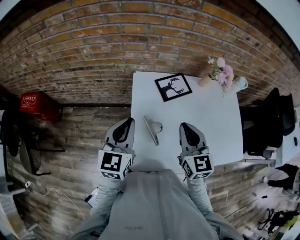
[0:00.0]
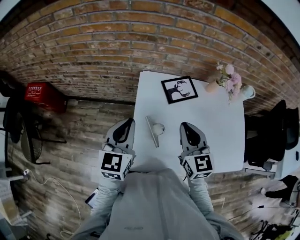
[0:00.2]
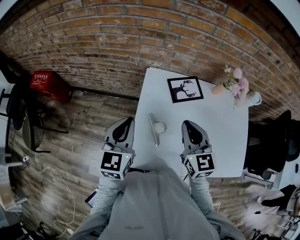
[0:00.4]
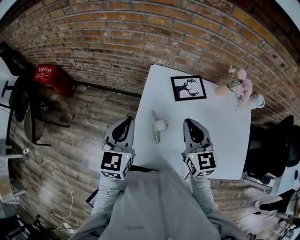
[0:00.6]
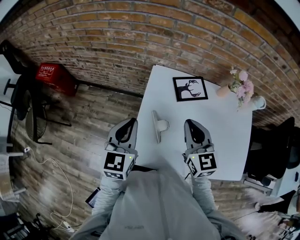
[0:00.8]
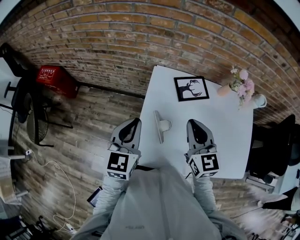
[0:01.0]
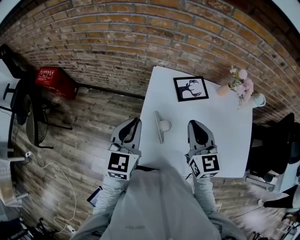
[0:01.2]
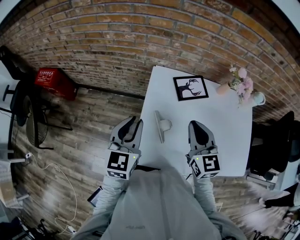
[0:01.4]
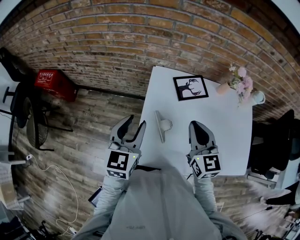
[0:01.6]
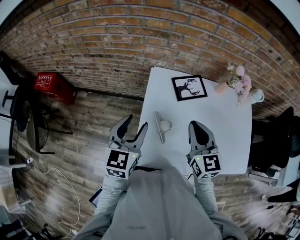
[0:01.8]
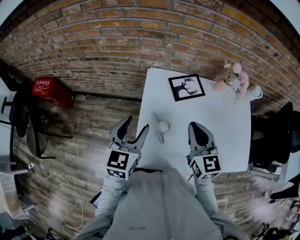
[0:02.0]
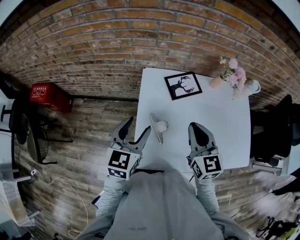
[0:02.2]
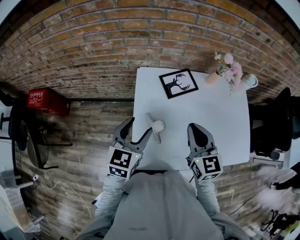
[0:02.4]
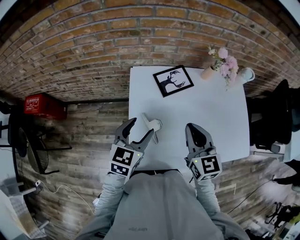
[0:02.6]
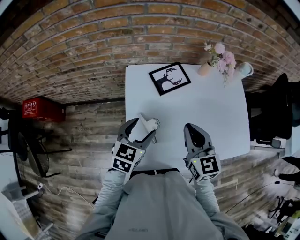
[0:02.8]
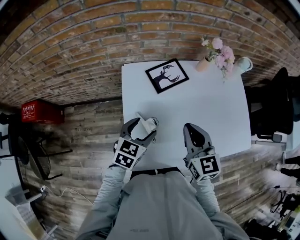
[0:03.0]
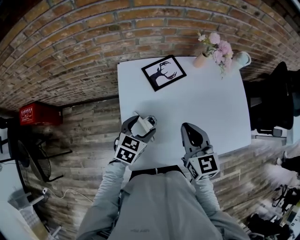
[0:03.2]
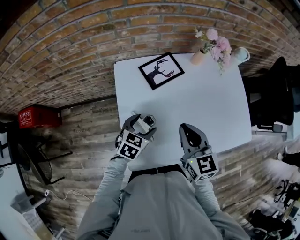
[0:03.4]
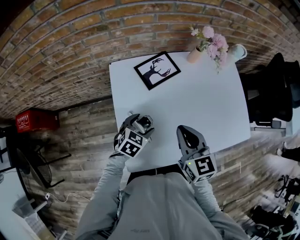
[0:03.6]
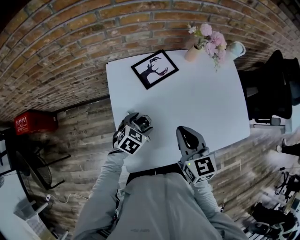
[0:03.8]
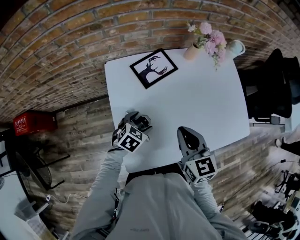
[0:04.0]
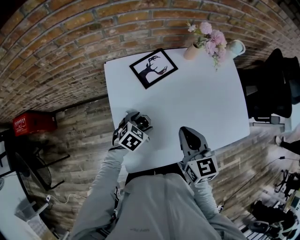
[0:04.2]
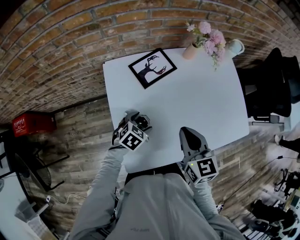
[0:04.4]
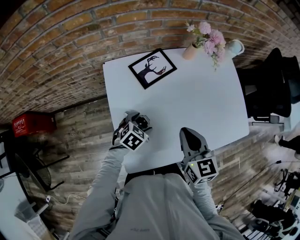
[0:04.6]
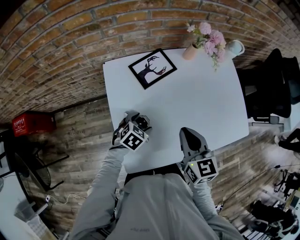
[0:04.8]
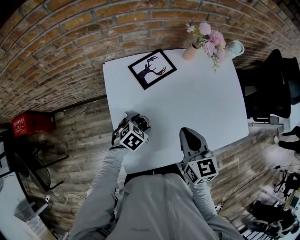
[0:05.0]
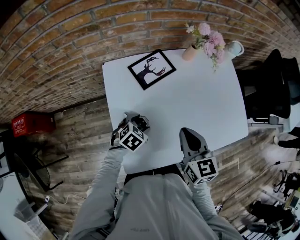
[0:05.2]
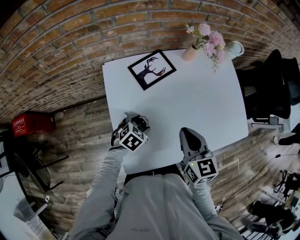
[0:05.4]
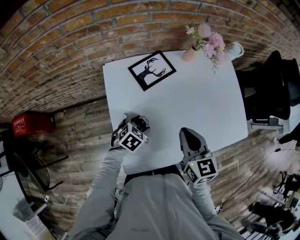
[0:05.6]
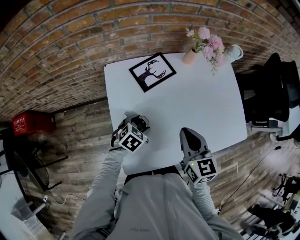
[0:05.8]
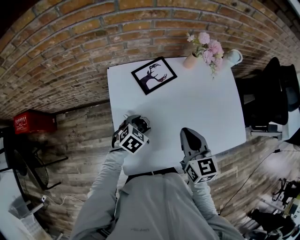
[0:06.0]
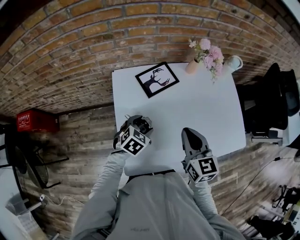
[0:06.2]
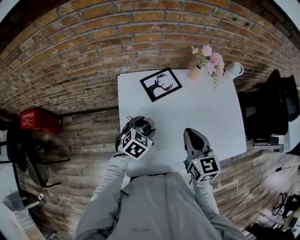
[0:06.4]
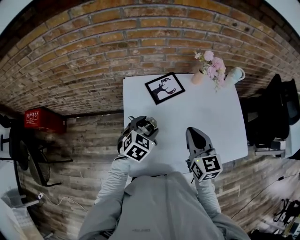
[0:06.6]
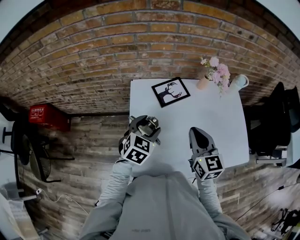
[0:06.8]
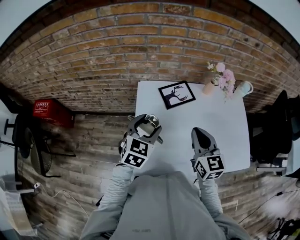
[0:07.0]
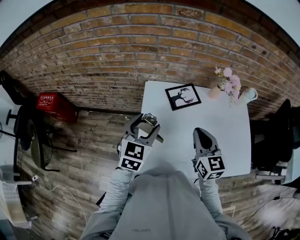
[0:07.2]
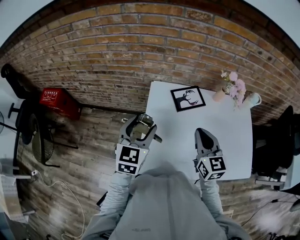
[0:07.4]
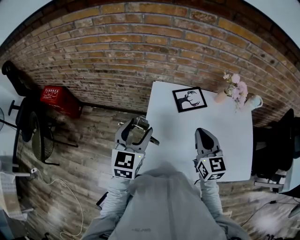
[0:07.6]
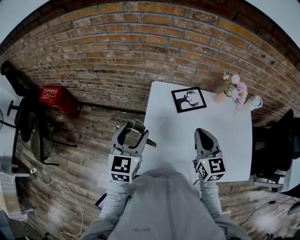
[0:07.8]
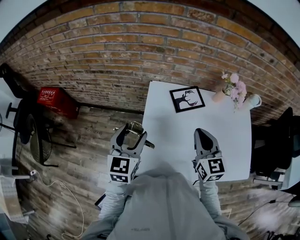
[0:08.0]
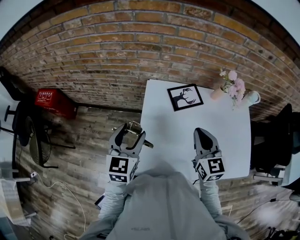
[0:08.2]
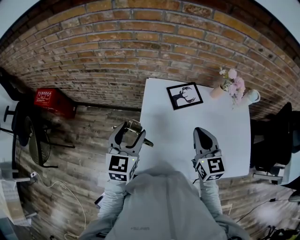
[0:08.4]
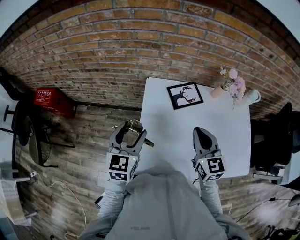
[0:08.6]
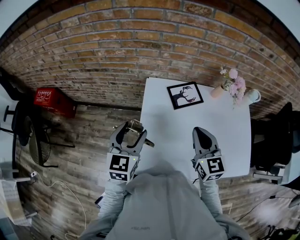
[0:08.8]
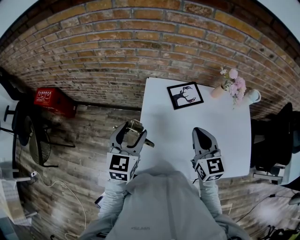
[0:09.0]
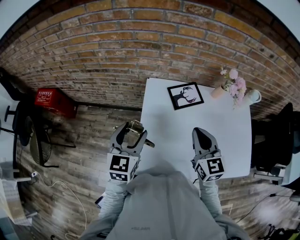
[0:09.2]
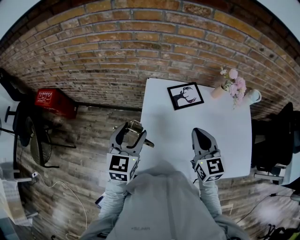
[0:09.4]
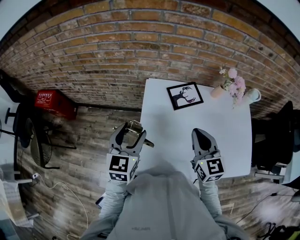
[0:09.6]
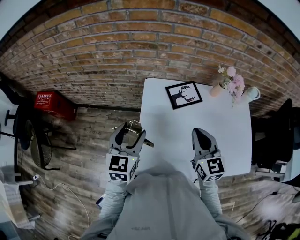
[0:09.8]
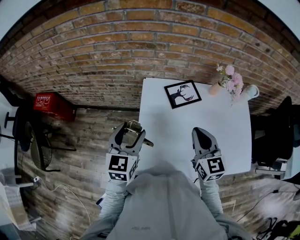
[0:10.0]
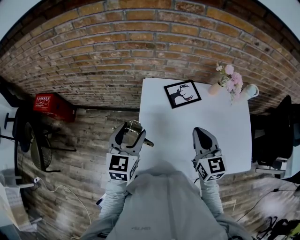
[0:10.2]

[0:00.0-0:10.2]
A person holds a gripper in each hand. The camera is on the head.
0:00.0 to 0:01.4: The grippers make only small movements.
0:01.4 to 0:03.0: The right gripper shifts roughly 5 cm to the right, while the left gripper moves downward and to the right, roughly 15 cm, changes its angle by some 40 degrees, and opens.
0:03.0 to 0:04.4: The left gripper heads downward, covering about 15 cm, and swivels some 30 degrees. The right gripper changes place by about 5 cm.
0:04.4 to 0:05.8: Neither gripper changes place.
0:05.8 to 0:07.2: The right gripper travels upward by approximately 5 cm. Meanwhile the left gripper heads upward, covering roughly 25 cm, and angles its fingers upward, by approximately 30 degrees.
0:07.2 to 0:08.8: The left gripper is displaced to the left by approximately 5 cm.
0:08.8 to 0:10.2: Both grippers stay put.

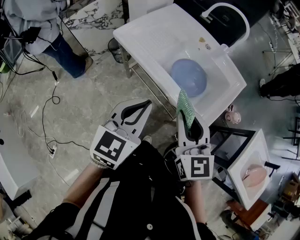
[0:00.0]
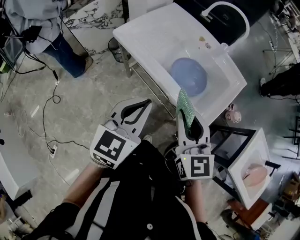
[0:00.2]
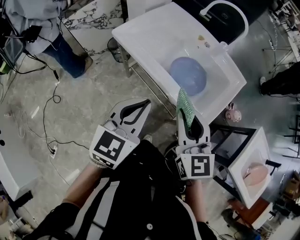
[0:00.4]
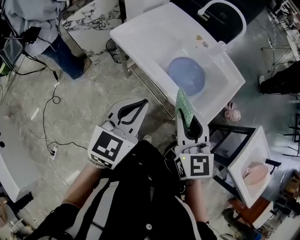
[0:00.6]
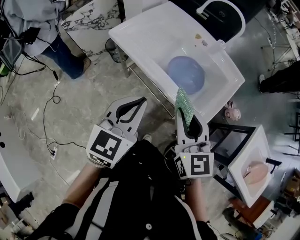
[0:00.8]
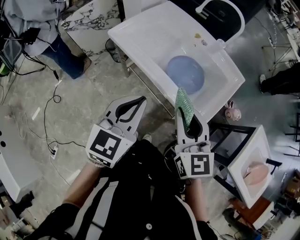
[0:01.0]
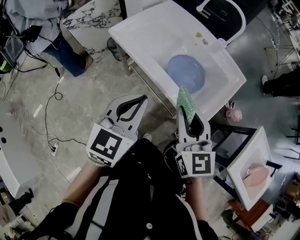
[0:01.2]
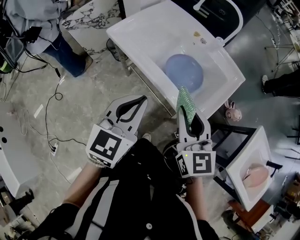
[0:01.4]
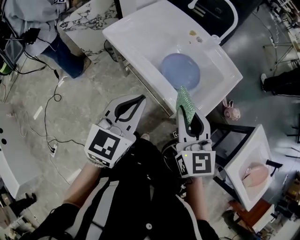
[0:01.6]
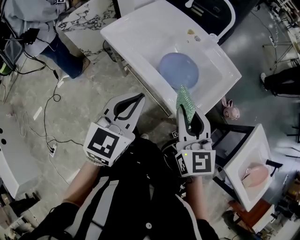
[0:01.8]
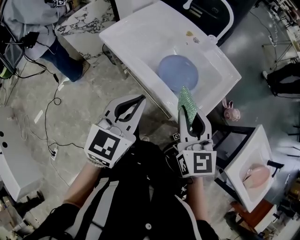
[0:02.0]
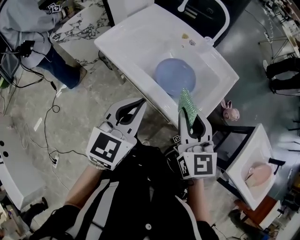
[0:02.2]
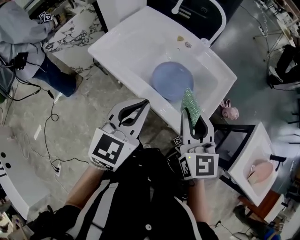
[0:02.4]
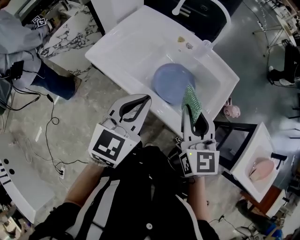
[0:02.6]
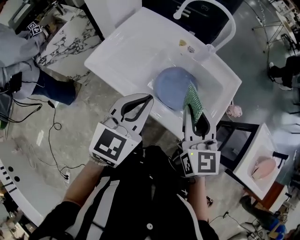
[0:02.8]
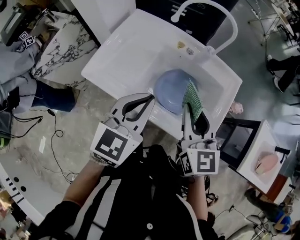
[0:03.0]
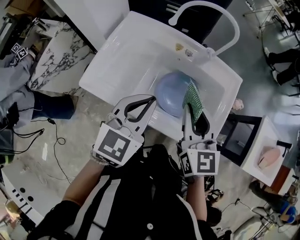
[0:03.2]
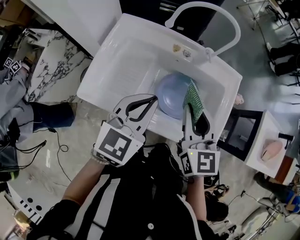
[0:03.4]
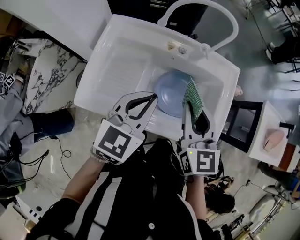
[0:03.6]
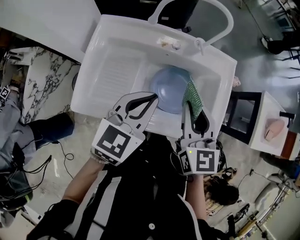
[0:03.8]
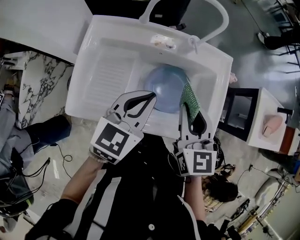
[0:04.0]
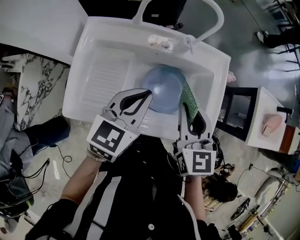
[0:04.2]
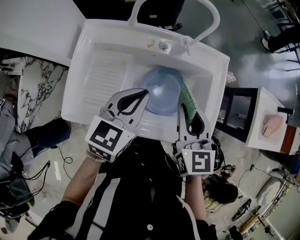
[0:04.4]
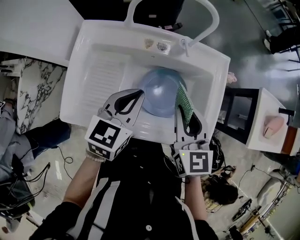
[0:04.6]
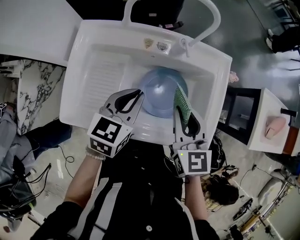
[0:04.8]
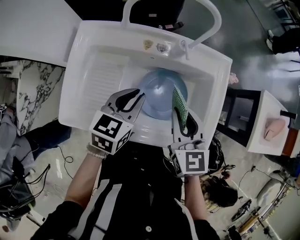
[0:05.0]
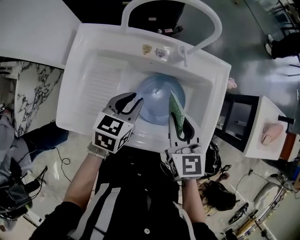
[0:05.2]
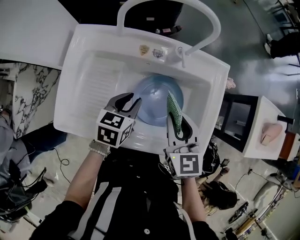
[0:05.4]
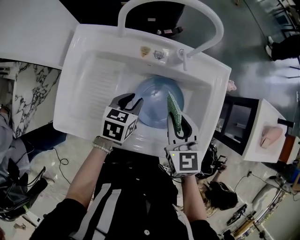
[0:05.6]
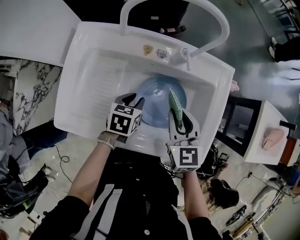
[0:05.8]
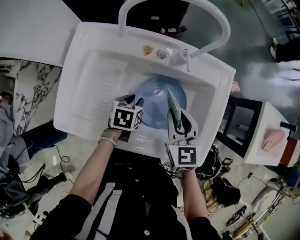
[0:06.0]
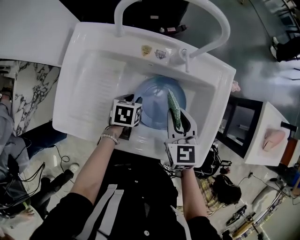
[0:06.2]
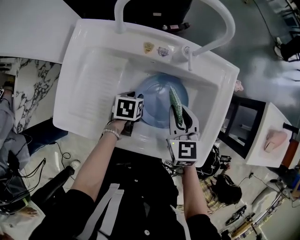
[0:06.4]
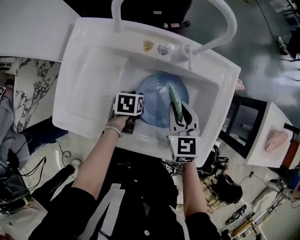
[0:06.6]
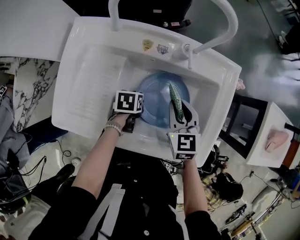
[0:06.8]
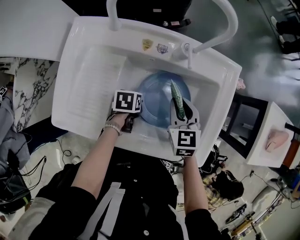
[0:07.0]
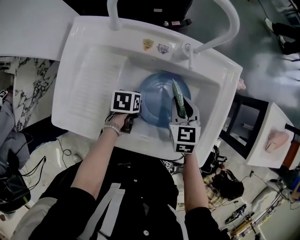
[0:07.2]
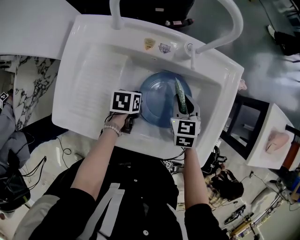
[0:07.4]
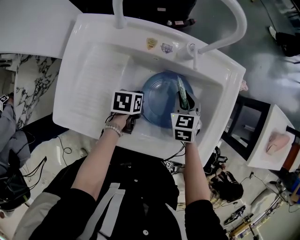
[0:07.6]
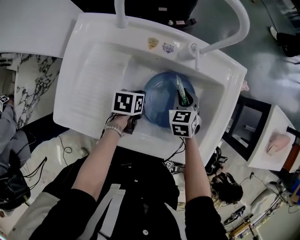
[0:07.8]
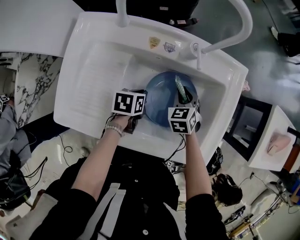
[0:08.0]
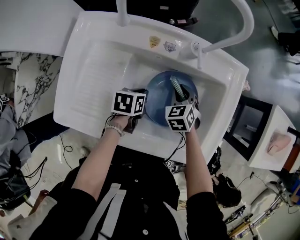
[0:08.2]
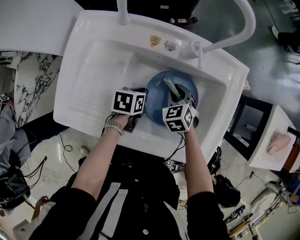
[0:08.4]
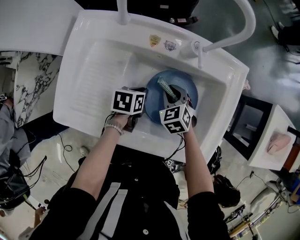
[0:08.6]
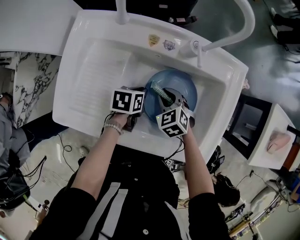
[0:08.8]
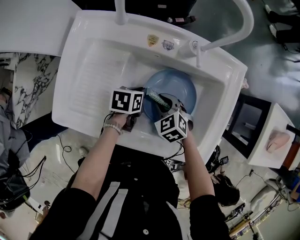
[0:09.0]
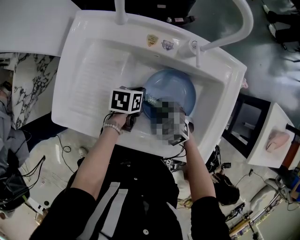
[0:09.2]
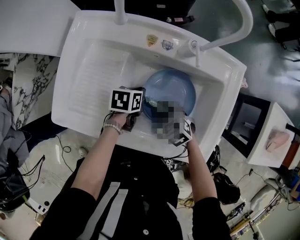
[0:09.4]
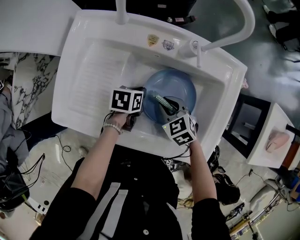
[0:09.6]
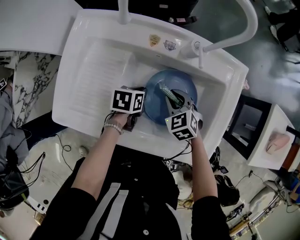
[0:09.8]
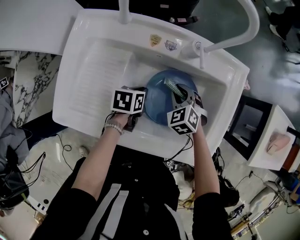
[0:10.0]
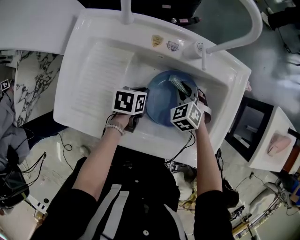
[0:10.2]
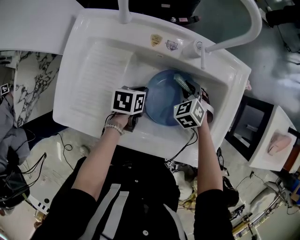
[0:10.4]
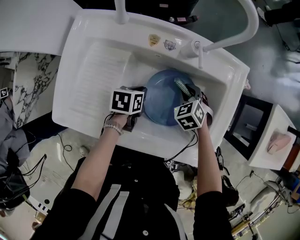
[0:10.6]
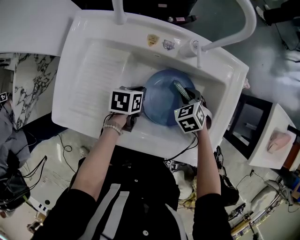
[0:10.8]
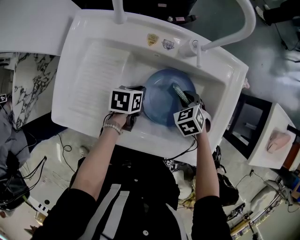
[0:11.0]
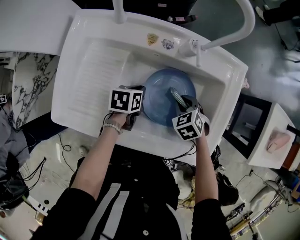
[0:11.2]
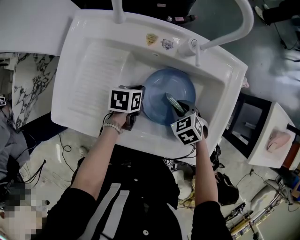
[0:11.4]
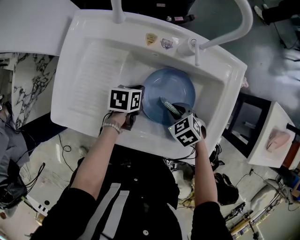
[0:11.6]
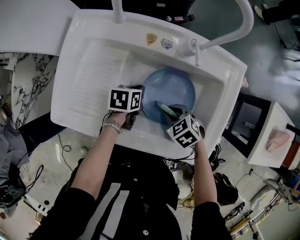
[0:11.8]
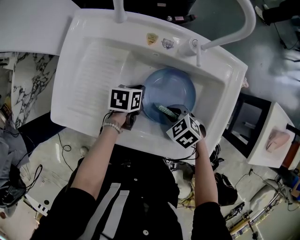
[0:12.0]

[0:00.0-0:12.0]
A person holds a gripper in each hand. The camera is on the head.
0:00.0 to 0:01.6: Both grippers move to the right, approximately 5 cm.
0:01.6 to 0:03.0: The two grippers go approximately 20 cm forward. The left gripper changes its angle by about 20 degrees.
0:03.0 to 0:04.4: The right gripper goes about 5 cm forward, and swivels approximately 20 degrees. The left gripper is displaced forward and downward by roughly 15 cm, and rotates about 20 degrees.
0:04.4 to 0:06.0: The left gripper shifts approximately 25 cm downward, tilts its fingers about 40 degrees downward, and opens; the right gripper heads downward, covering some 10 cm.
0:06.0 to 0:07.6: The right gripper heads downward and forward, covering about 15 cm.
0:07.6 to 0:09.0: The right gripper goes some 10 cm to the left and backward, and rotates some 30 degrees.
0:09.0 to 0:10.4: The right gripper goes about 10 cm forward and to the right, and rotates roughly 20 degrees.
0:10.4 to 0:12.0: The right gripper moves approximately 15 cm, and turns by roughly 30 degrees.

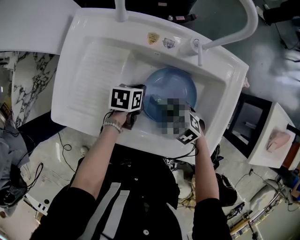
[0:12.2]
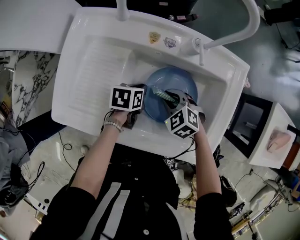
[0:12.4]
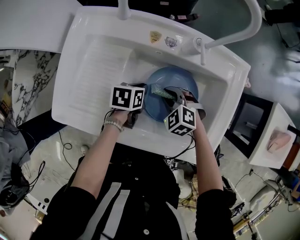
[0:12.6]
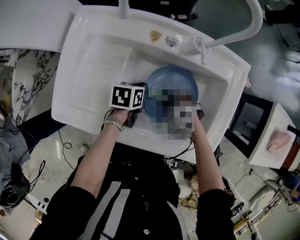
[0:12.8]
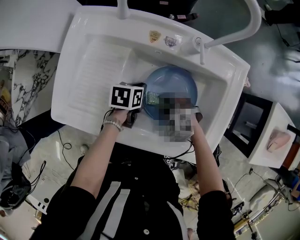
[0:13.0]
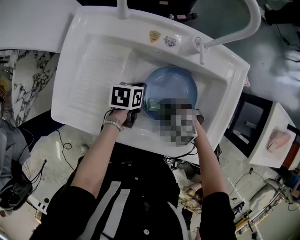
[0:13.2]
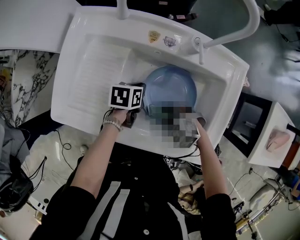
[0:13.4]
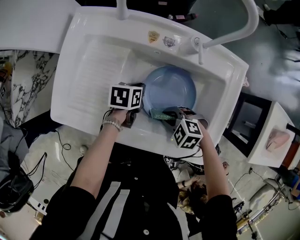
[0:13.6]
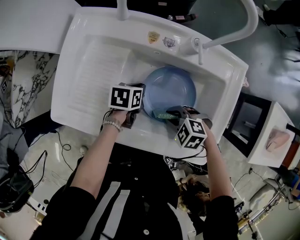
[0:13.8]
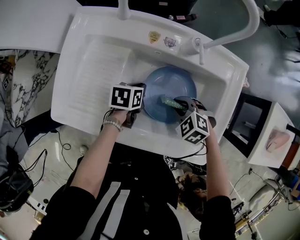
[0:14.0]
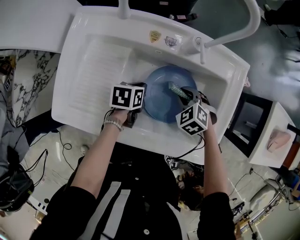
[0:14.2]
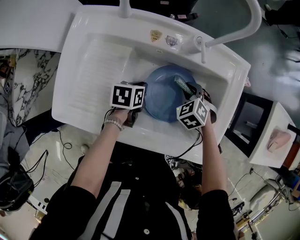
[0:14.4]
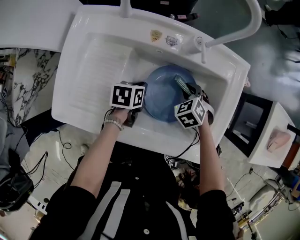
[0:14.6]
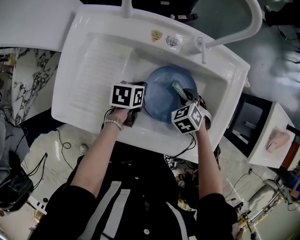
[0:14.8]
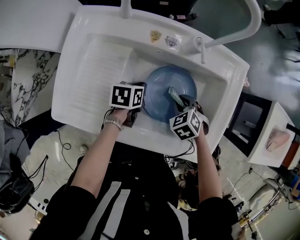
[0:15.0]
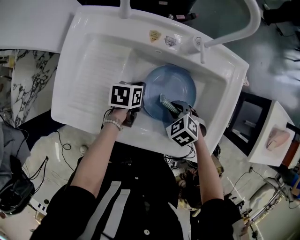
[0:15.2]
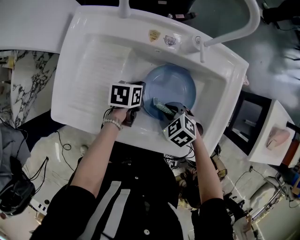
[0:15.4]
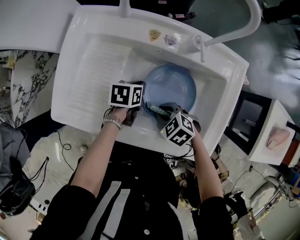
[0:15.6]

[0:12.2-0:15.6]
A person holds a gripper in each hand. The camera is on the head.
0:12.2 to 0:13.8: The right gripper changes place by approximately 5 cm, and changes its angle by roughly 20 degrees.
